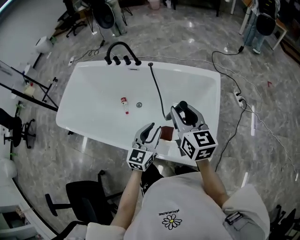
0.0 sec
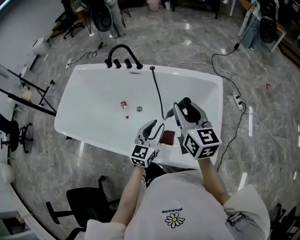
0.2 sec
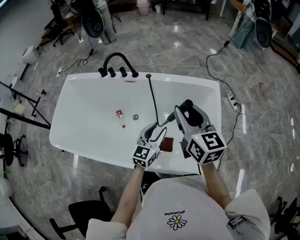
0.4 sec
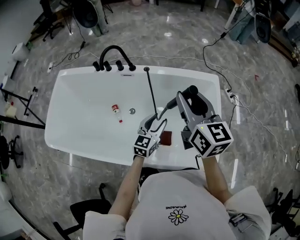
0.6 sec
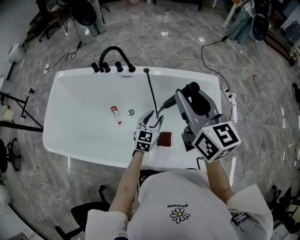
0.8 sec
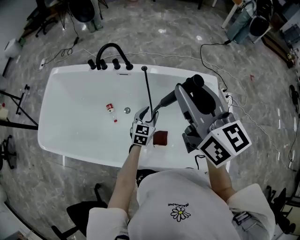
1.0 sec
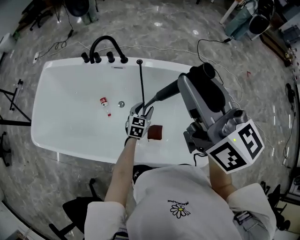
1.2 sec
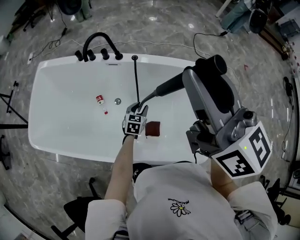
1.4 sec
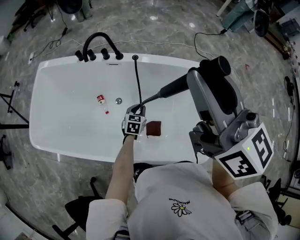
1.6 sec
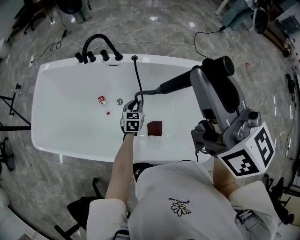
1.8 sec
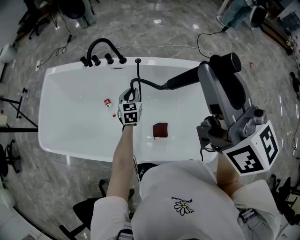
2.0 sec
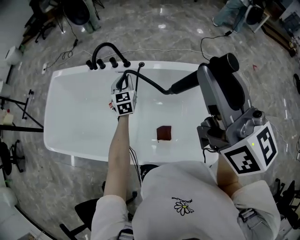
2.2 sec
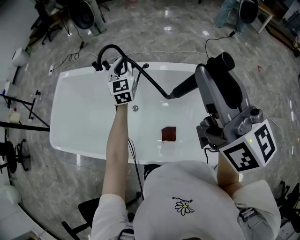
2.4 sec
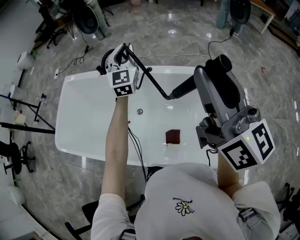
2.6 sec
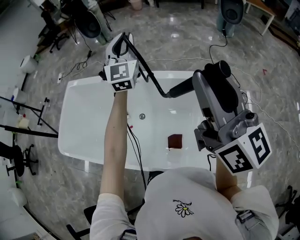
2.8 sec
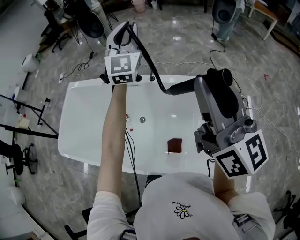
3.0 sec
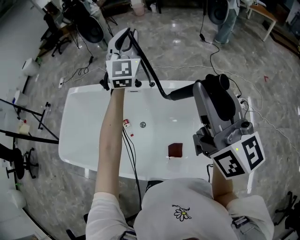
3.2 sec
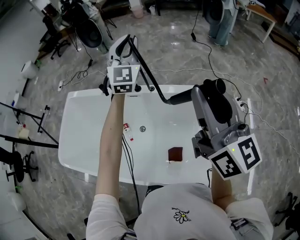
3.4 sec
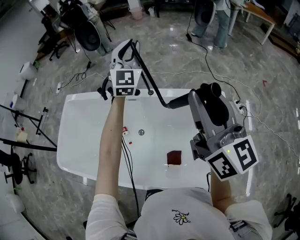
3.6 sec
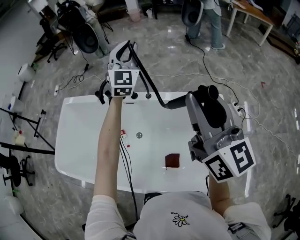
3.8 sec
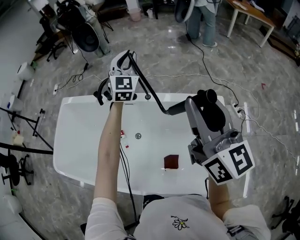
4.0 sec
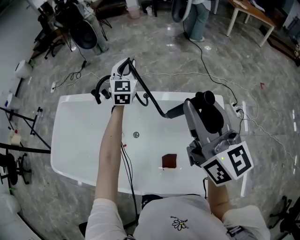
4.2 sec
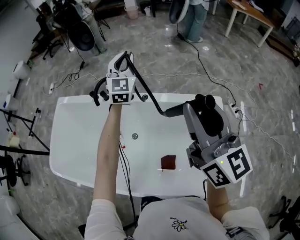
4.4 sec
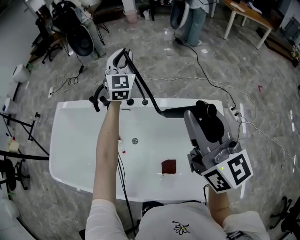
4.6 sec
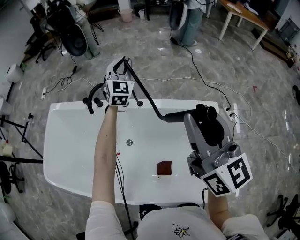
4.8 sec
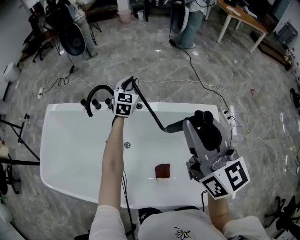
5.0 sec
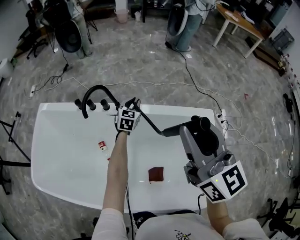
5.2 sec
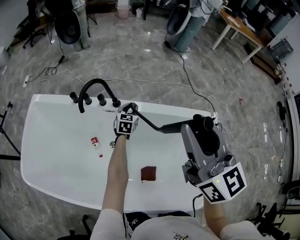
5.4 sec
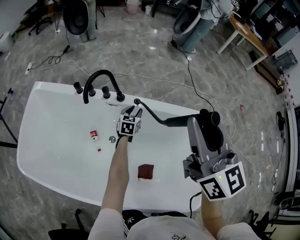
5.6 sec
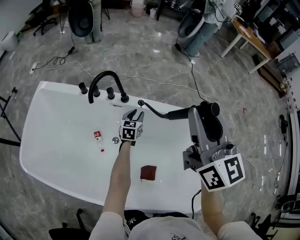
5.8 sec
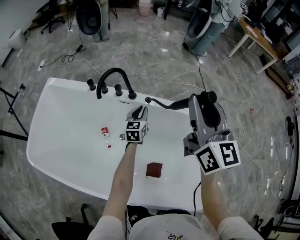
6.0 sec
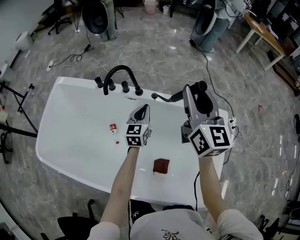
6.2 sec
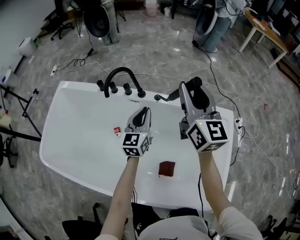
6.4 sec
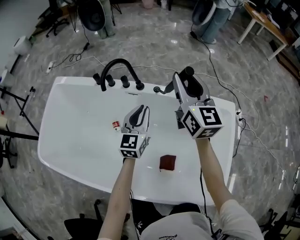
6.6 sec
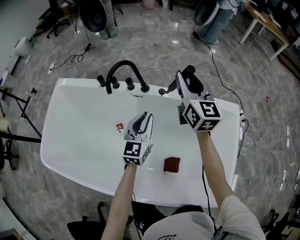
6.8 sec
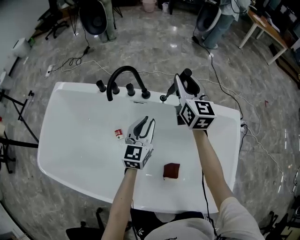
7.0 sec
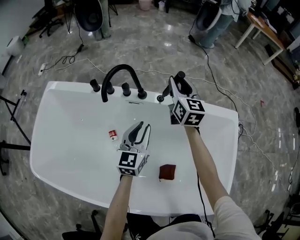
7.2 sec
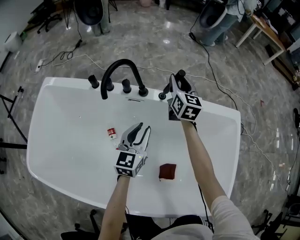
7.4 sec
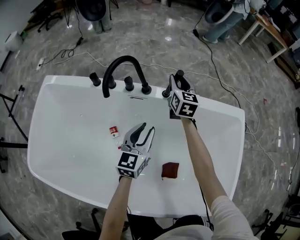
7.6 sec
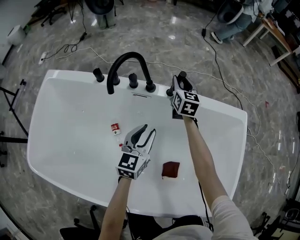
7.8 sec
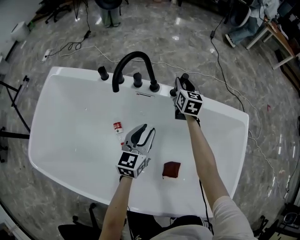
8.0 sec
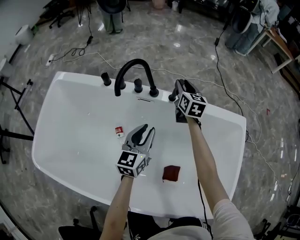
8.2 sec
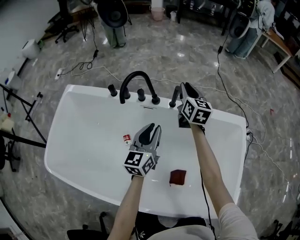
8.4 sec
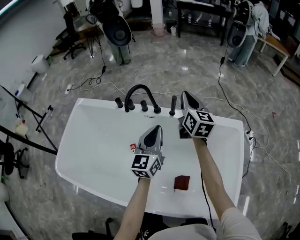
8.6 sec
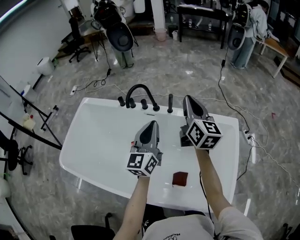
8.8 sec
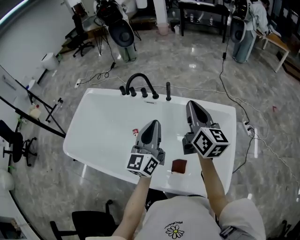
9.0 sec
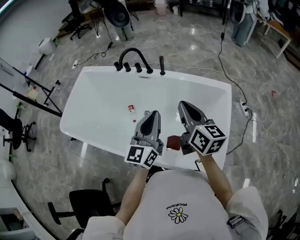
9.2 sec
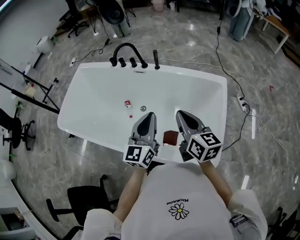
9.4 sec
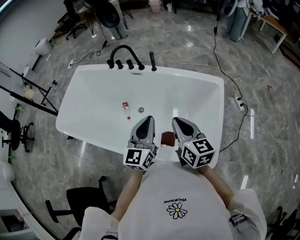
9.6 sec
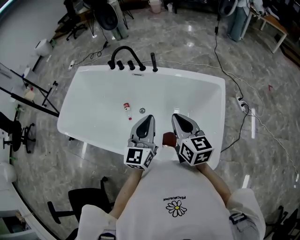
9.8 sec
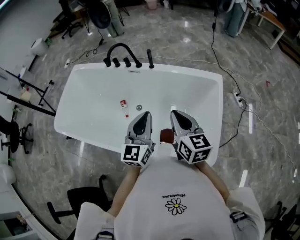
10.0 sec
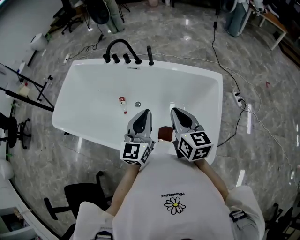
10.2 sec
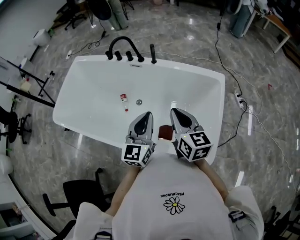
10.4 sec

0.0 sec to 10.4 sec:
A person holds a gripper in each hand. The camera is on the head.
0.0 sec to 1.4 sec: The left gripper heads forward, downward and to the left, covering approximately 30 cm, and swivels roughly 30 degrees. The right gripper goes about 25 cm upward, to the left and forward.
1.4 sec to 3.0 sec: The right gripper is displaced to the right by about 10 cm, while the left gripper goes about 50 cm upward, tips its fingers upward by about 50 degrees, and closes up.
3.0 sec to 4.4 sec: The left gripper goes approximately 20 cm downward and forward. The right gripper travels forward and downward by some 10 cm.
4.4 sec to 6.0 sec: The right gripper goes approximately 15 cm forward, to the left and downward. The left gripper goes approximately 35 cm downward, and swivels approximately 40 degrees.
6.0 sec to 7.4 sec: The right gripper goes roughly 35 cm downward and forward. Meanwhile the left gripper goes some 10 cm backward and to the left, and moves approximately 10 cm upward and comes back.
7.4 sec to 9.0 sec: The left gripper goes about 35 cm upward and backward, swivels approximately 30 degrees, and closes; the right gripper goes roughly 40 cm backward and upward, turns by some 20 degrees, and closes.
9.0 sec to 10.4 sec: The left gripper moves backward, downward and to the right, about 15 cm. Meanwhile the right gripper is displaced backward and downward by roughly 20 cm, and rotates some 20 degrees.

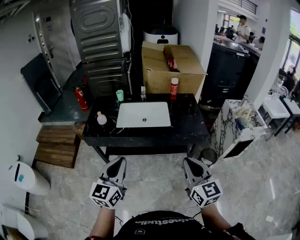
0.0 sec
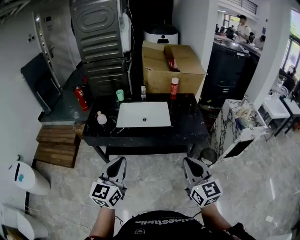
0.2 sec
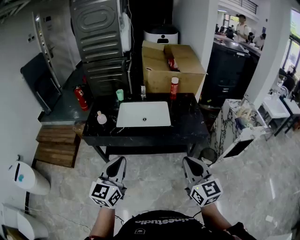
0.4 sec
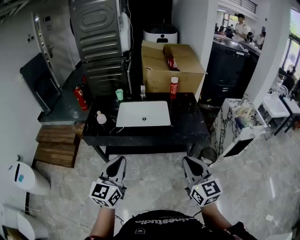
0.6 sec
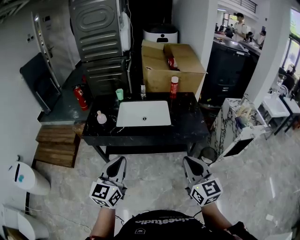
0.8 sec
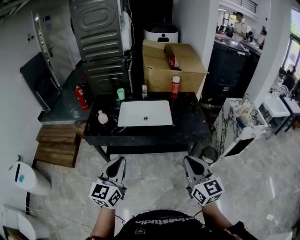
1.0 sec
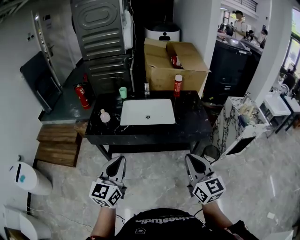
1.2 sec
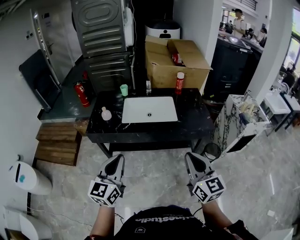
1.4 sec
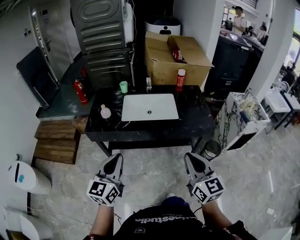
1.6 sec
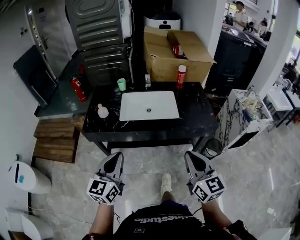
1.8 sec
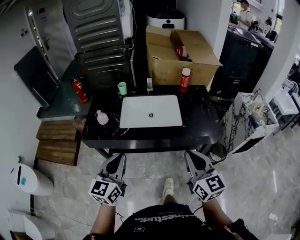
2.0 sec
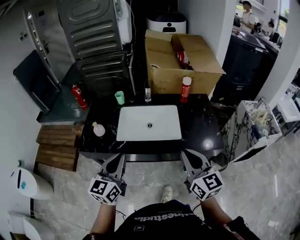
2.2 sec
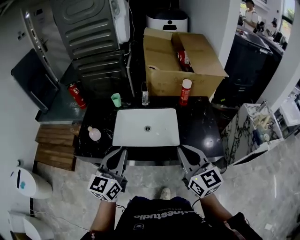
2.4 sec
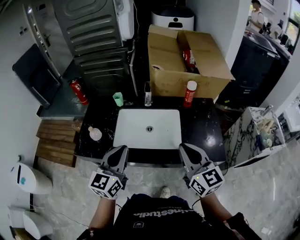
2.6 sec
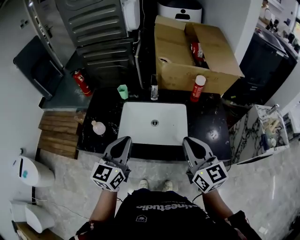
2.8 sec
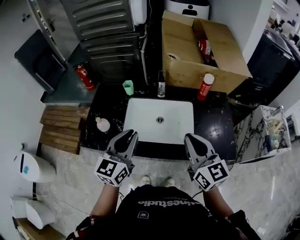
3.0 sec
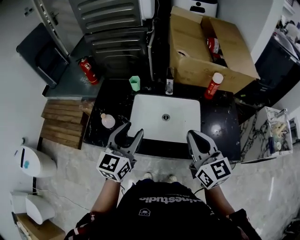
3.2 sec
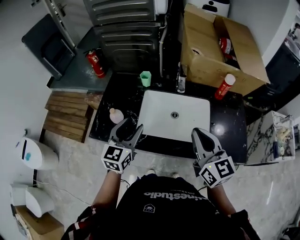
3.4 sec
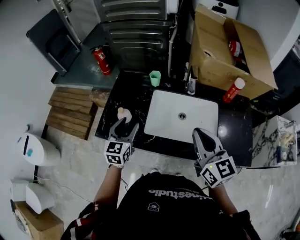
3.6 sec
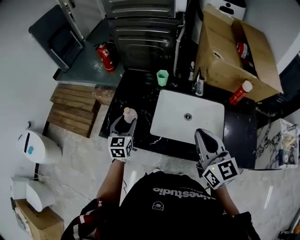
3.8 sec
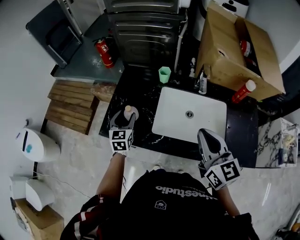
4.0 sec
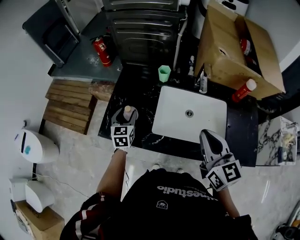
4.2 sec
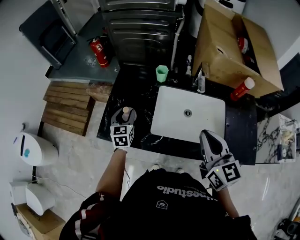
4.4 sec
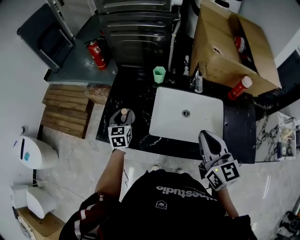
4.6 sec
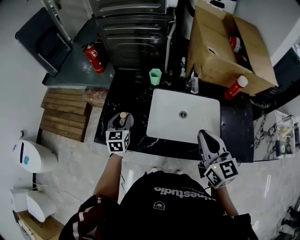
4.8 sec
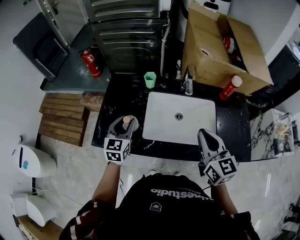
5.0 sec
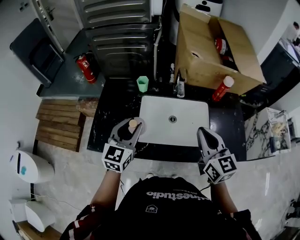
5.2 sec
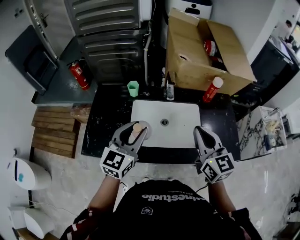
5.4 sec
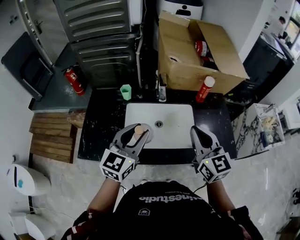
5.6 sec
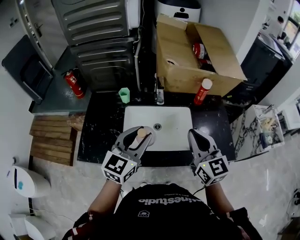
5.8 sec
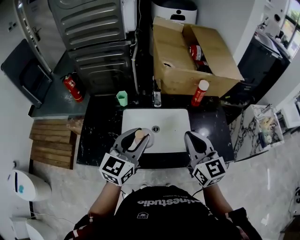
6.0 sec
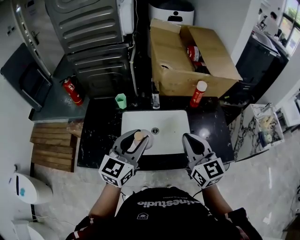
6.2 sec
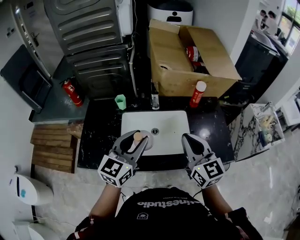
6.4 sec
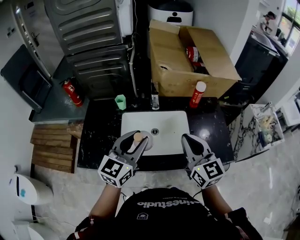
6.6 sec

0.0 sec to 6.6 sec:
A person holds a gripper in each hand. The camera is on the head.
0.0 sec to 1.6 sec: The two grippers go about 5 cm to the left.
1.6 sec to 3.2 sec: The two grippers go approximately 35 cm forward. The left gripper opens.
3.2 sec to 5.0 sec: The left gripper travels to the left, downward and forward by some 20 cm; the right gripper goes about 10 cm forward and to the left.
5.0 sec to 6.6 sec: The right gripper is displaced to the right by some 10 cm. The left gripper is displaced to the right and upward by about 25 cm, and swivels about 30 degrees.

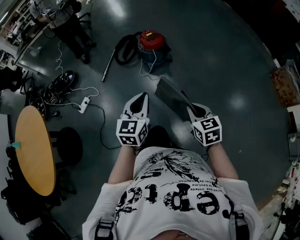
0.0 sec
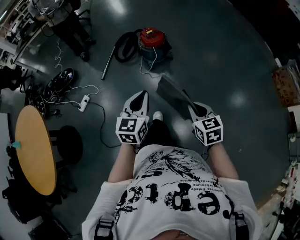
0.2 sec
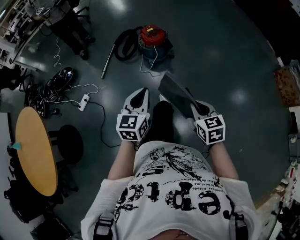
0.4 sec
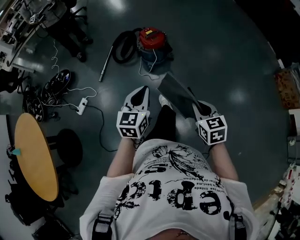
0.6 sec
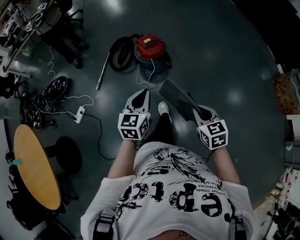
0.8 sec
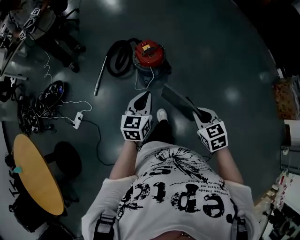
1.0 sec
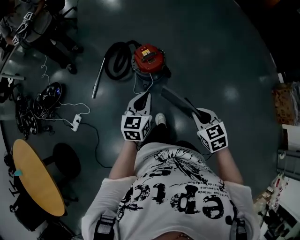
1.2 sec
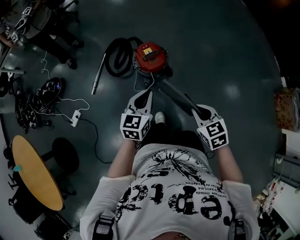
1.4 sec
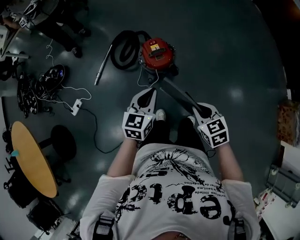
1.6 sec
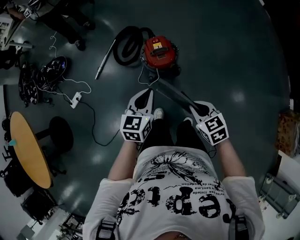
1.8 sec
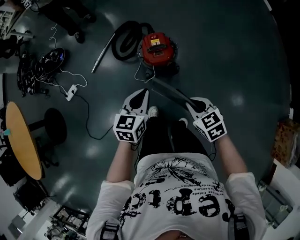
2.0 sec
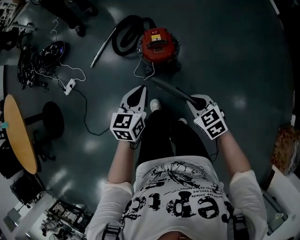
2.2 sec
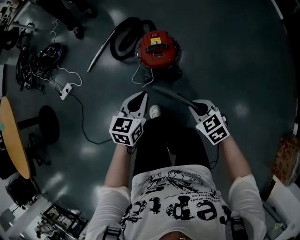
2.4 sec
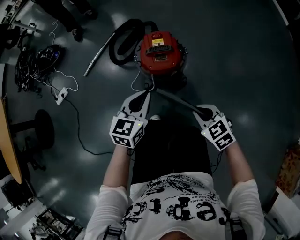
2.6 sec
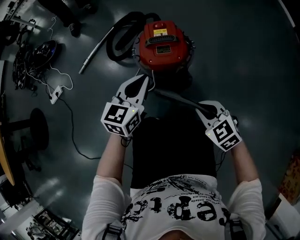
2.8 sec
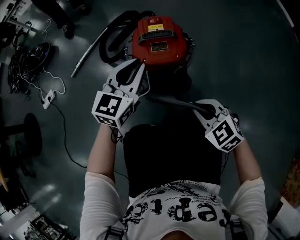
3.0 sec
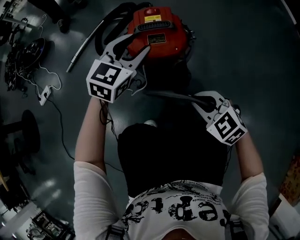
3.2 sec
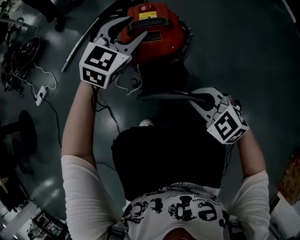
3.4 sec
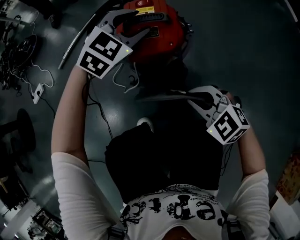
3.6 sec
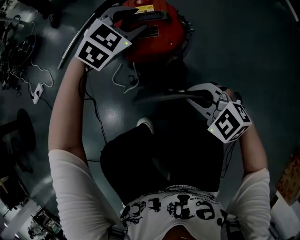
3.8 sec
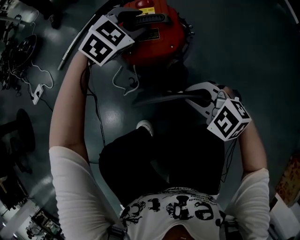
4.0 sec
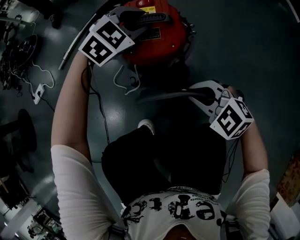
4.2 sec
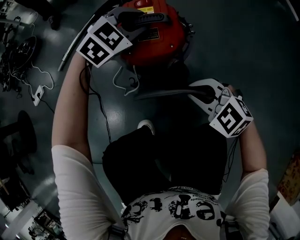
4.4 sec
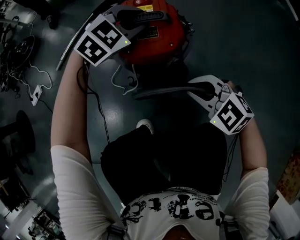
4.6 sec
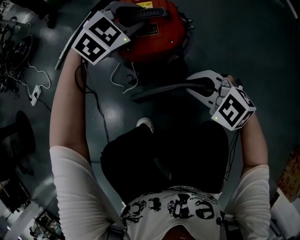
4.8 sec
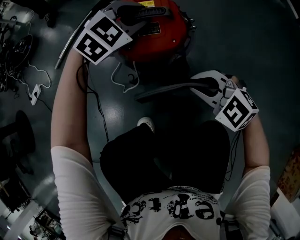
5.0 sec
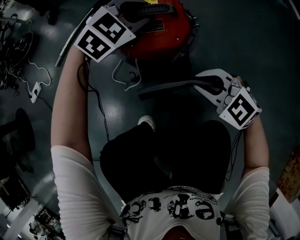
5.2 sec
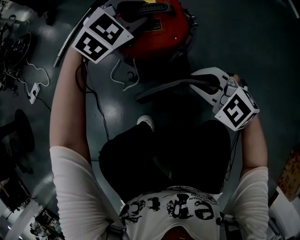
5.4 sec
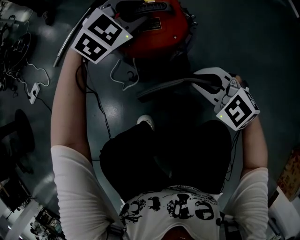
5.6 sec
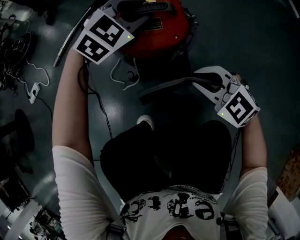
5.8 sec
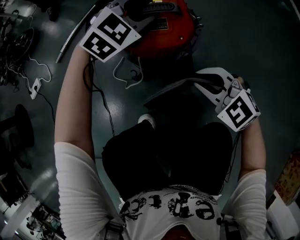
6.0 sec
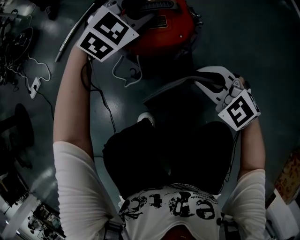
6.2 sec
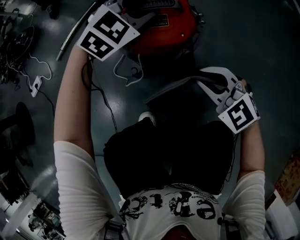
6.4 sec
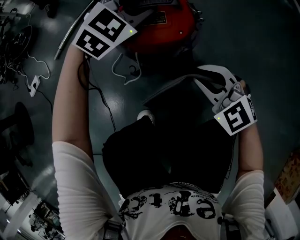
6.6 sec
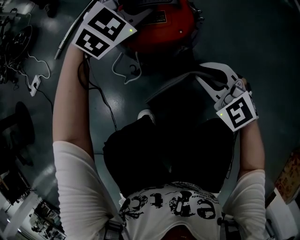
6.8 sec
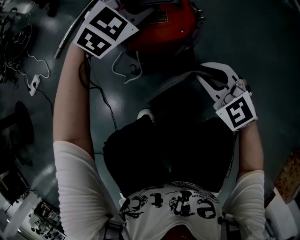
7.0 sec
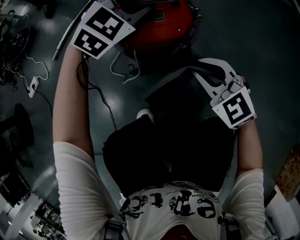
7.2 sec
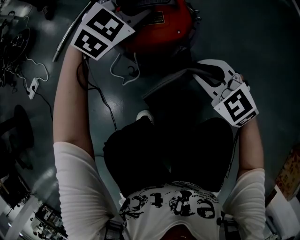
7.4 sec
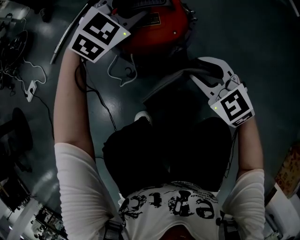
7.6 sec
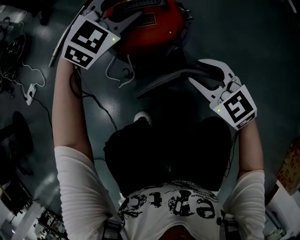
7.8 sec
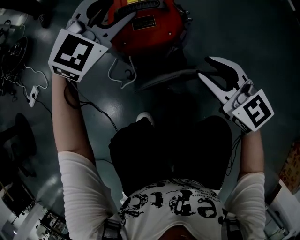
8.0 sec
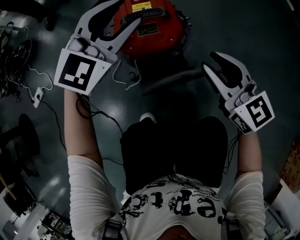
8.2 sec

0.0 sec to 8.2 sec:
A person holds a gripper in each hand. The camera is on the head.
0.0 sec to 1.6 sec: The two grippers travel together, forward, roughly 50 cm. The right gripper swivels roughly 20 degrees.
1.6 sec to 3.2 sec: The left gripper shifts roughly 50 cm downward and forward, swivels some 20 degrees, and opens up. Meanwhile the right gripper shifts some 50 cm downward, and twists approximately 40 degrees counterclockwise, seen from behind.
3.2 sec to 5.0 sec: The left gripper is displaced forward and to the right by some 10 cm, and swivels roughly 30 degrees.
5.0 sec to 6.6 sec: There are only small adjustments of the grippers.
6.6 sec to 8.2 sec: The right gripper travels upward by some 10 cm, and rotates some 40 degrees. The left gripper heads upward and backward, covering approximately 15 cm, and swivels some 20 degrees.
